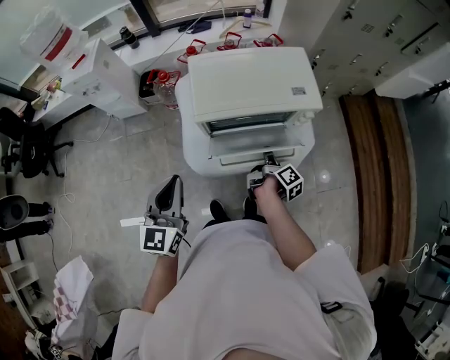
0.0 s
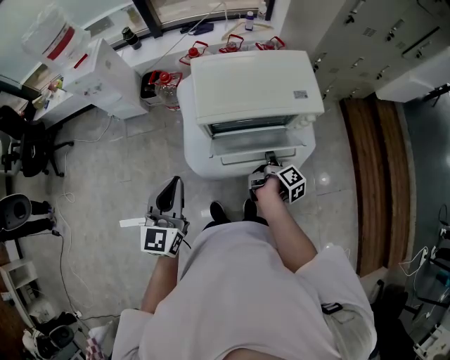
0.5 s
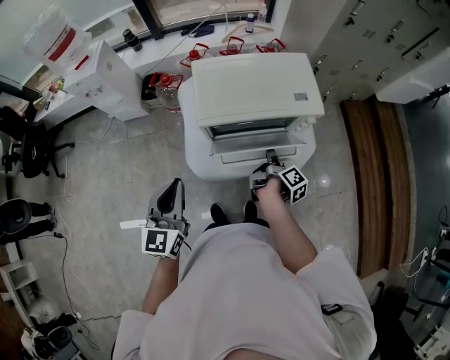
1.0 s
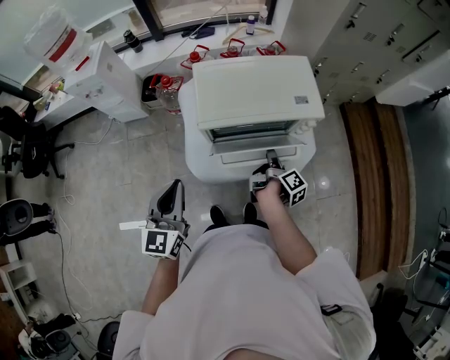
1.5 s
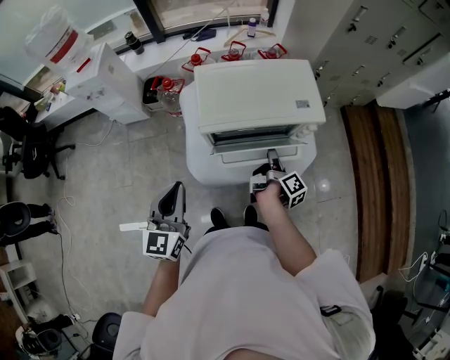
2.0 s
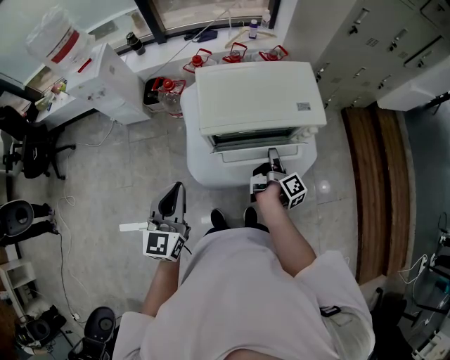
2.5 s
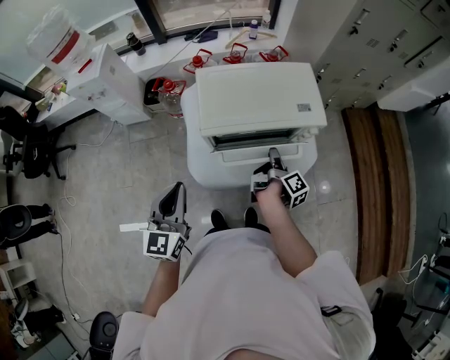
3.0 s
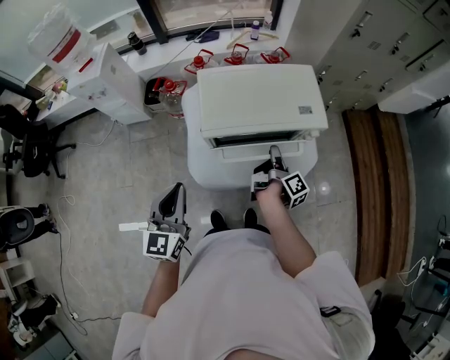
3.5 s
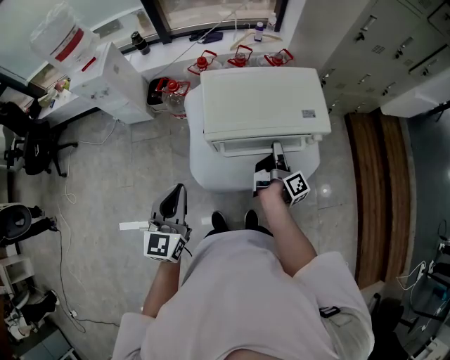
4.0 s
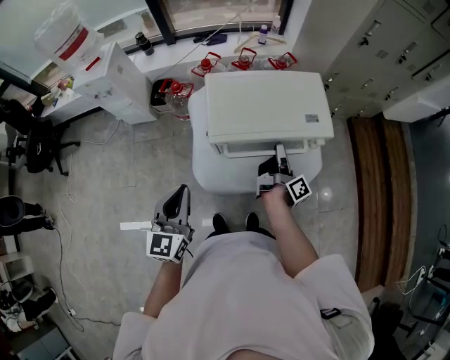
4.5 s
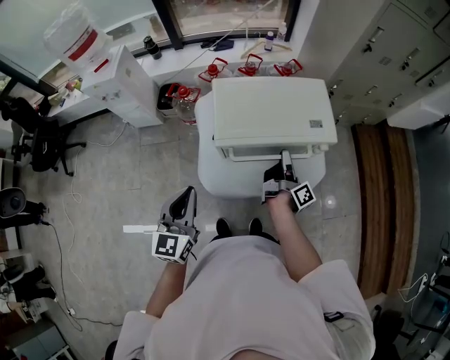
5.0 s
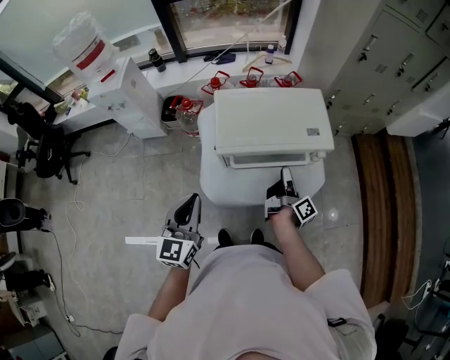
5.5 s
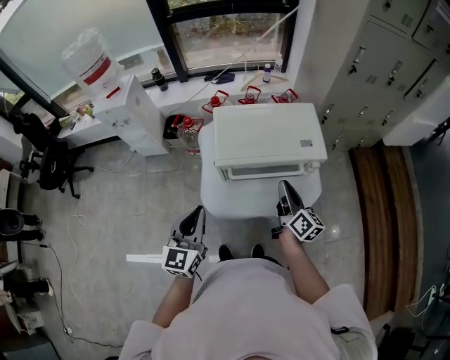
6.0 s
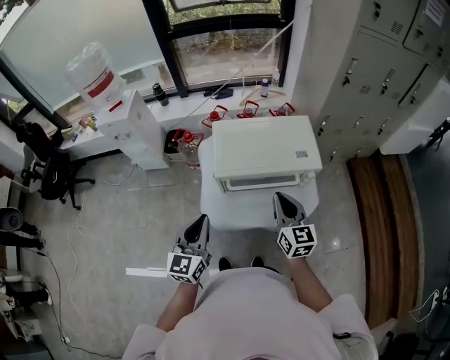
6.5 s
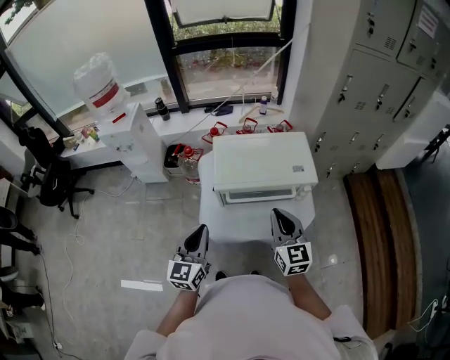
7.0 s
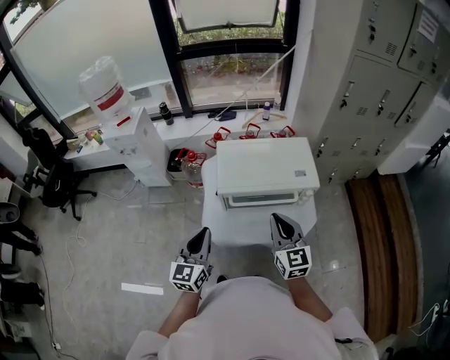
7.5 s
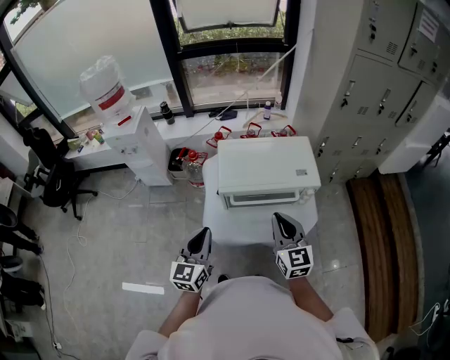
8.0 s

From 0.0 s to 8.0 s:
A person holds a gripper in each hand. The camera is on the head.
From 0.0 s to 2.0 s: The grippers move only a little.
From 2.0 s to 4.0 s: The right gripper shifts by about 5 cm.
From 4.0 s to 6.0 s: The right gripper travels upward and backward by some 10 cm, and rotates around the line of its fingers by about 40 degrees, counterclockwise from behind.
From 6.0 s to 8.0 s: The right gripper moves upward and backward, approximately 10 cm, and rolls counterclockwise, seen from behind, by some 50 degrees.

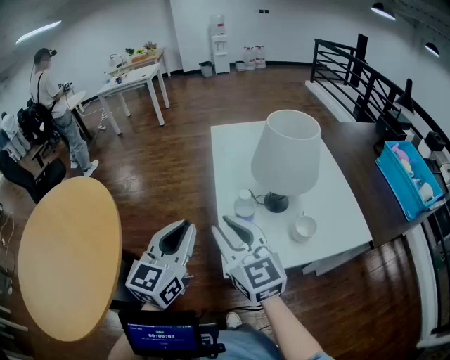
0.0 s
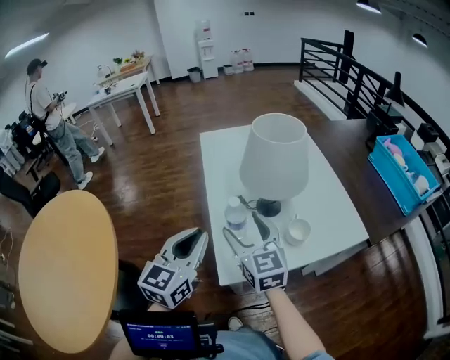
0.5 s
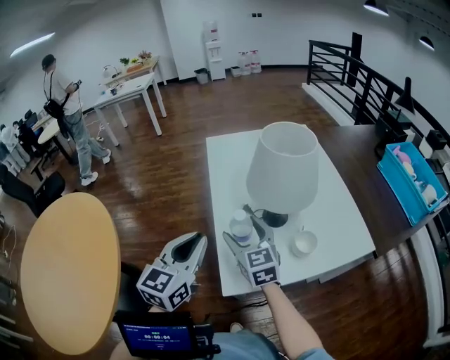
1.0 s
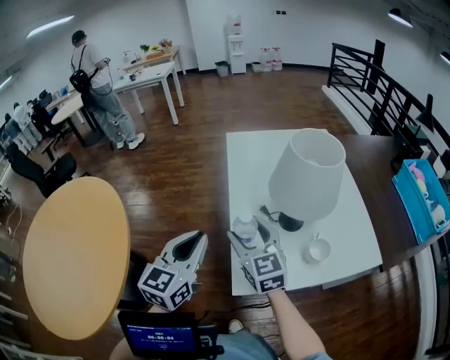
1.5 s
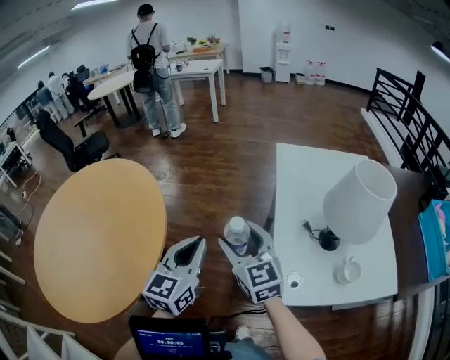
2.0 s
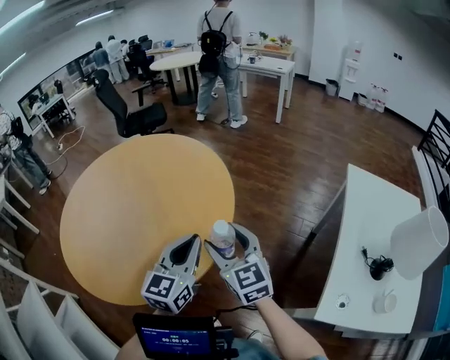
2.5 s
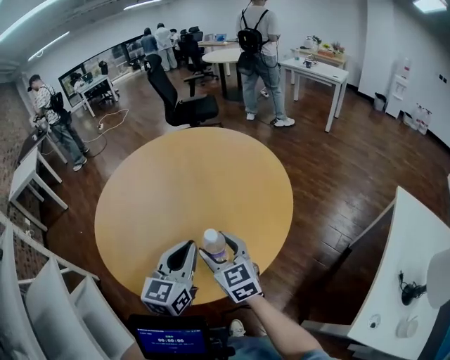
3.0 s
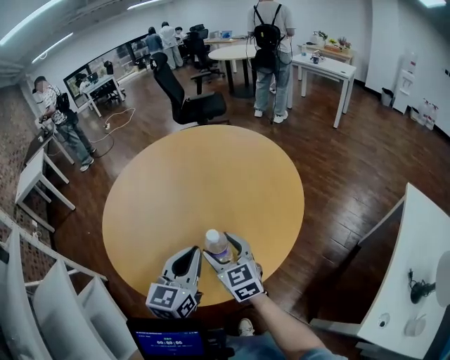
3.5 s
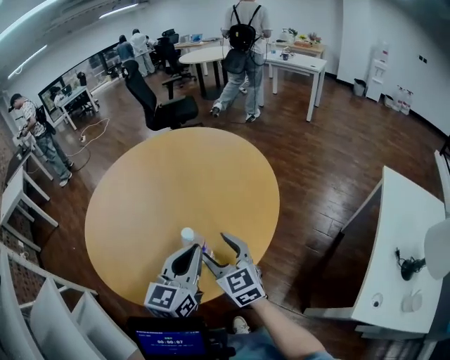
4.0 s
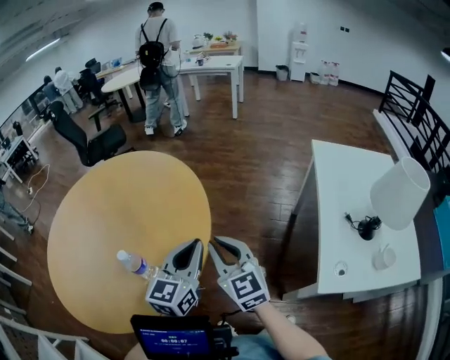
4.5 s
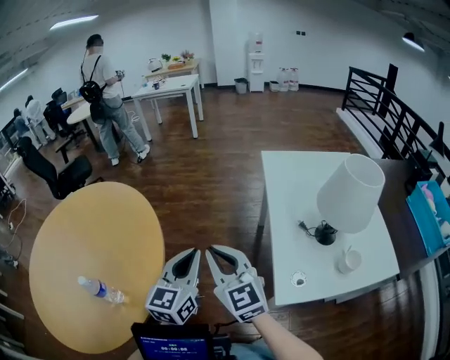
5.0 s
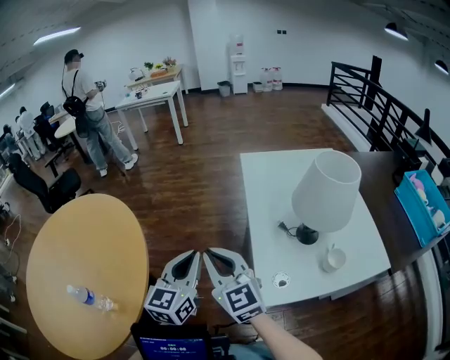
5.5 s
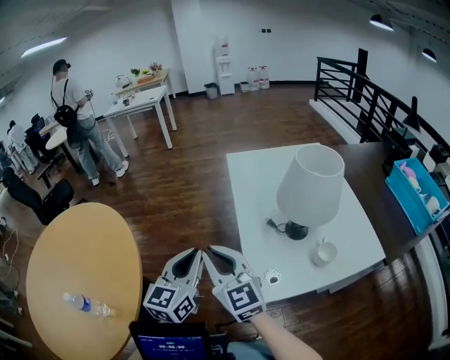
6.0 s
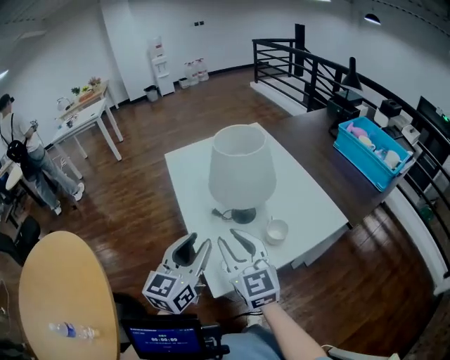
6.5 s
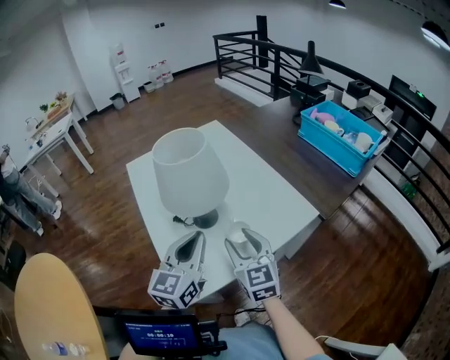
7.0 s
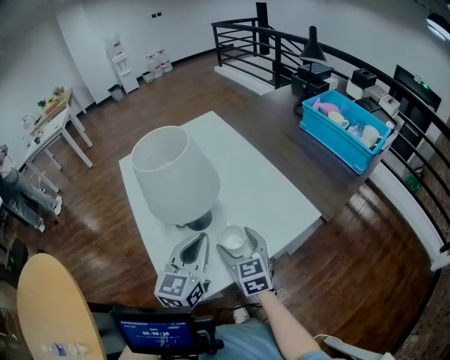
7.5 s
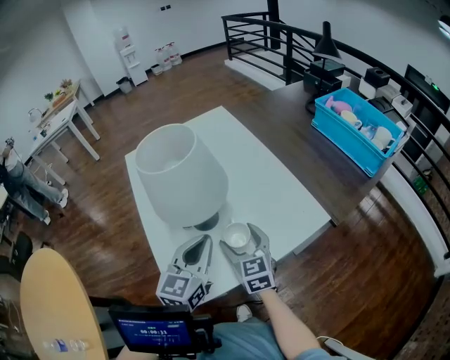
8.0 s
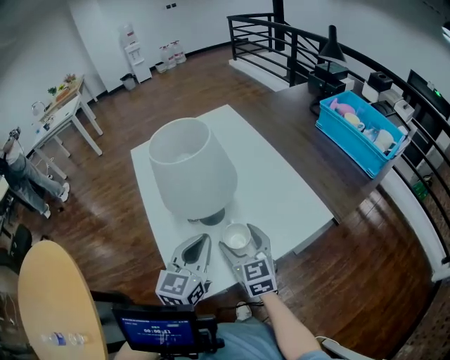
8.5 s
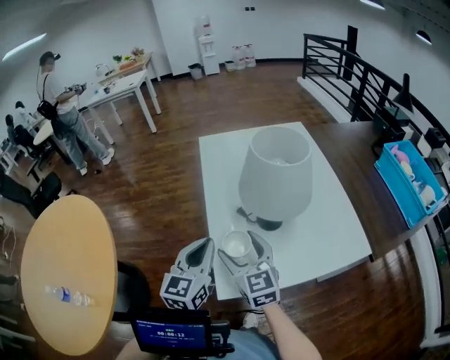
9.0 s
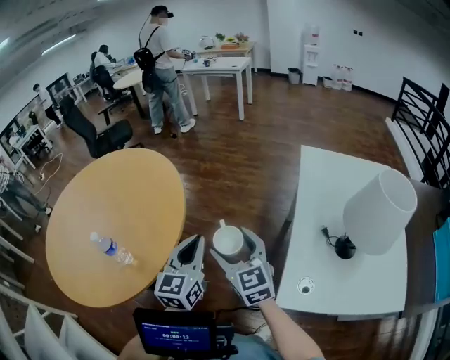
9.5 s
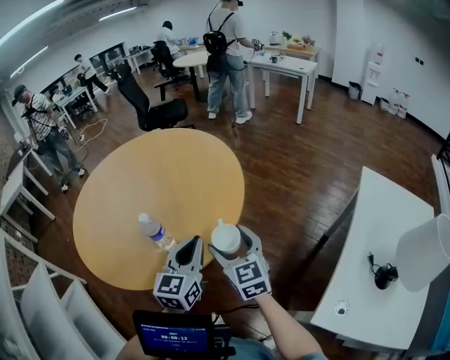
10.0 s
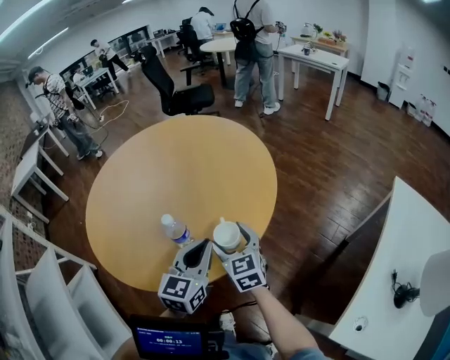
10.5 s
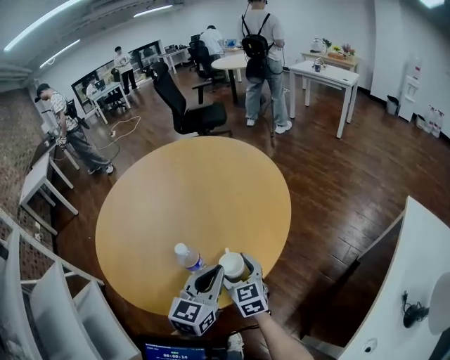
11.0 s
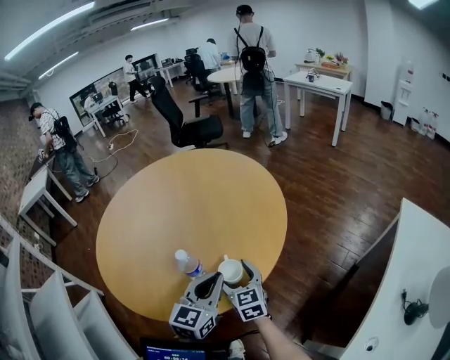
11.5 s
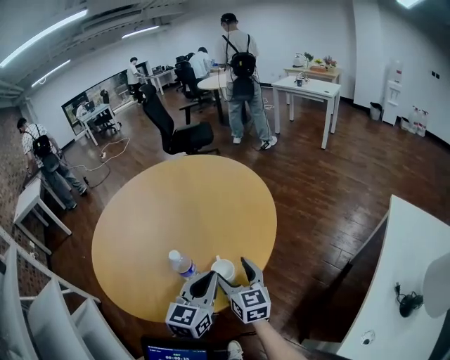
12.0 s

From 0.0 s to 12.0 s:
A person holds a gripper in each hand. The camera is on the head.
From 0.0 s to 2.0 s: The two grippers go approximately 15 cm to the left. The right gripper opens.
From 2.0 s to 4.0 s: The pair of grippers is taken some 40 cm. The left gripper rotates about 30 degrees. The right gripper changes its angle by some 30 degrees.
From 4.0 s to 6.0 s: Both grippers are carried approximately 50 cm. The right gripper turns by some 40 degrees, and closes its fingers. Meanwhile the left gripper changes its angle by about 40 degrees.
From 6.0 s to 8.0 s: The right gripper ends up approximately 40 cm from where it was, changes its angle by some 40 degrees, and opens. The left gripper changes place by roughly 35 cm, turns by some 30 degrees, and opens and closes again.
From 8.0 s to 10.0 s: The pair of grippers is taken some 70 cm. The left gripper turns by some 70 degrees; the right gripper changes its angle by approximately 70 degrees.
From 10.0 s to 12.0 s: The left gripper goes approximately 5 cm to the left; the right gripper moves to the left and forward, approximately 10 cm.

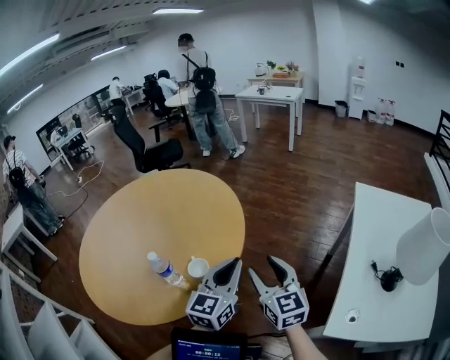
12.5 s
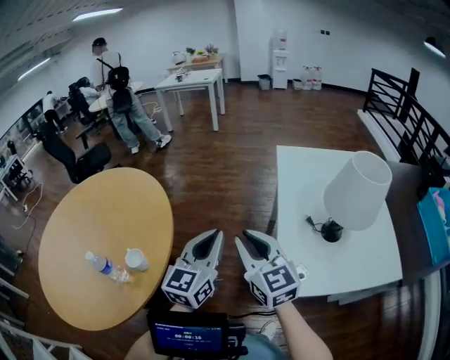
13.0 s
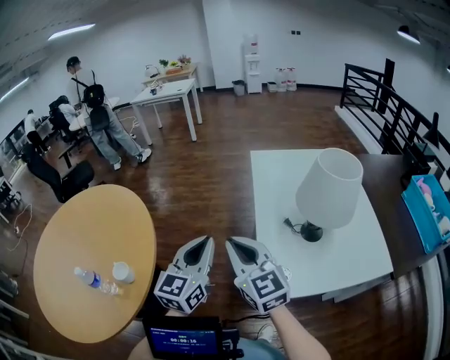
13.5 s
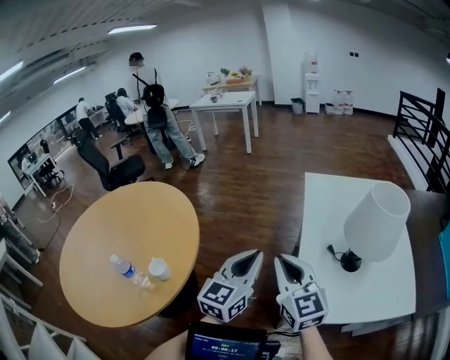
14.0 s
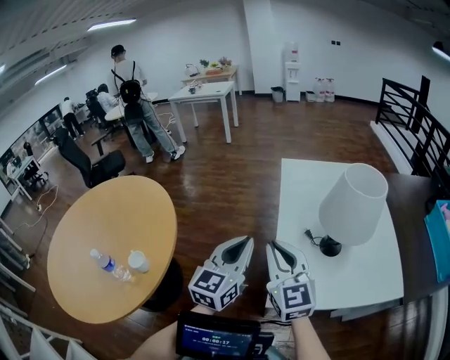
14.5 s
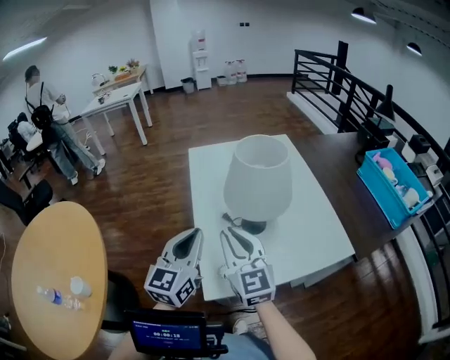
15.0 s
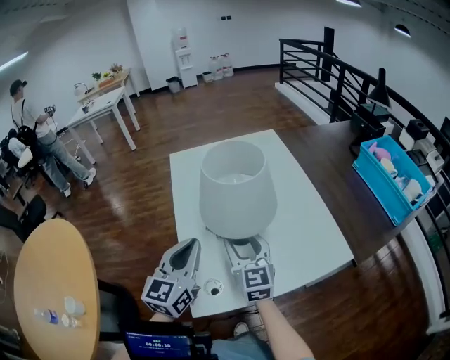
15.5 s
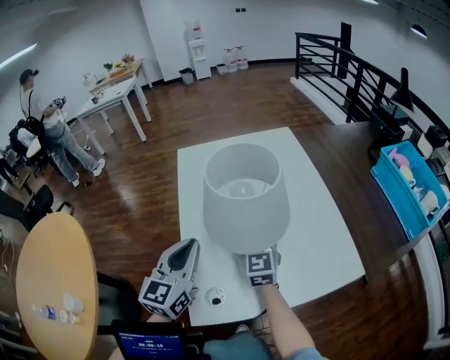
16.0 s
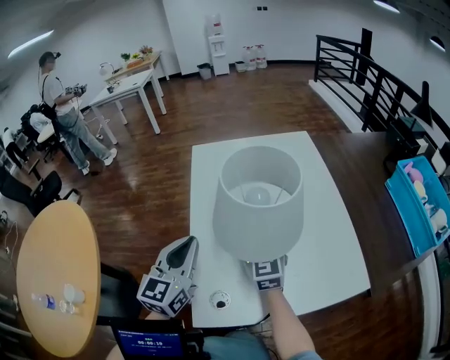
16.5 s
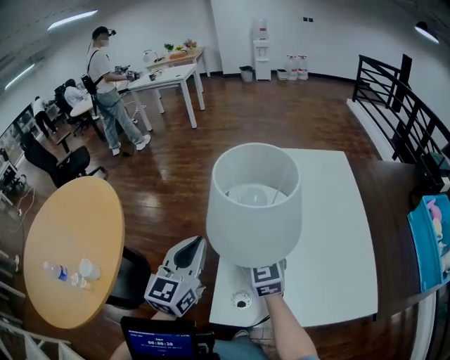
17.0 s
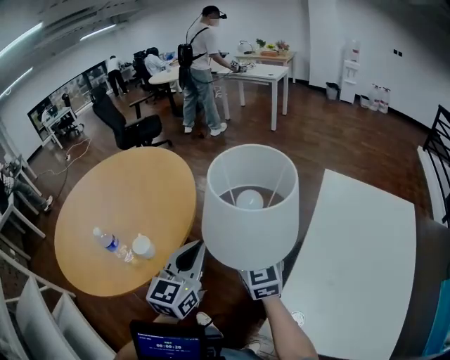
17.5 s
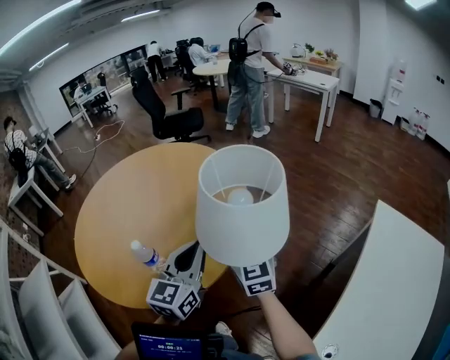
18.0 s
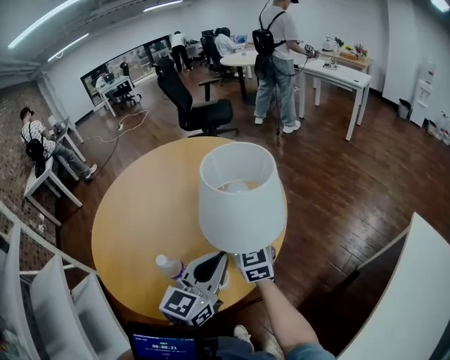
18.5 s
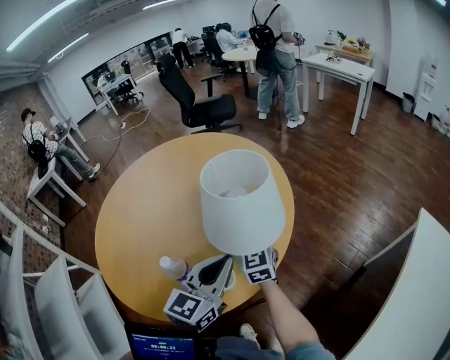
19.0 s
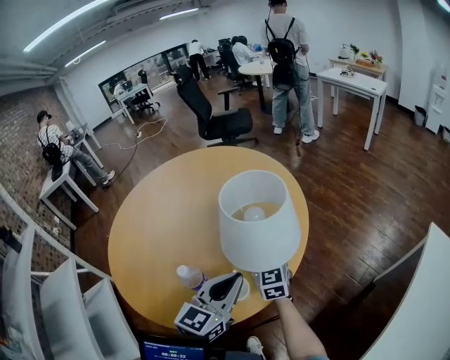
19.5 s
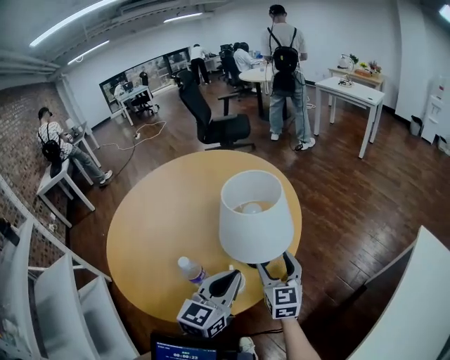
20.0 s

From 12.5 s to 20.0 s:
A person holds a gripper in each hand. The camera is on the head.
From 12.5 s to 14.5 s: Both grippers move to the right, about 25 cm. The right gripper turns by some 30 degrees, and closes up; the left gripper changes its angle by approximately 20 degrees.
From 14.5 s to 16.5 s: The left gripper shifts roughly 20 cm to the right and forward, while the right gripper is displaced to the right, forward and downward by approximately 30 cm, and opens, then closes once more.
From 16.5 s to 18.0 s: The two grippers travel together, roughly 60 cm. The left gripper changes its angle by approximately 50 degrees. Meanwhile the right gripper turns by approximately 50 degrees.
From 18.0 s to 20.0 s: The left gripper is displaced downward by some 5 cm. The right gripper goes about 15 cm downward and to the left, and opens.
